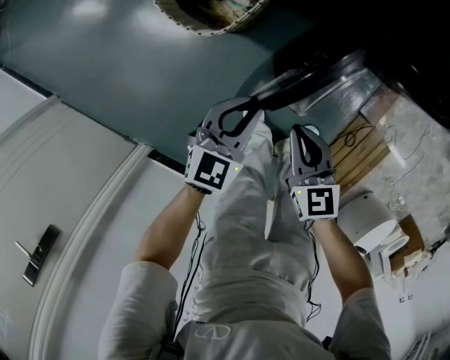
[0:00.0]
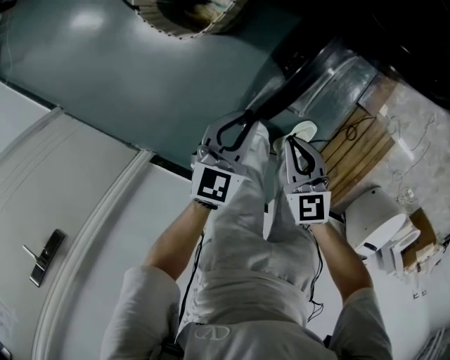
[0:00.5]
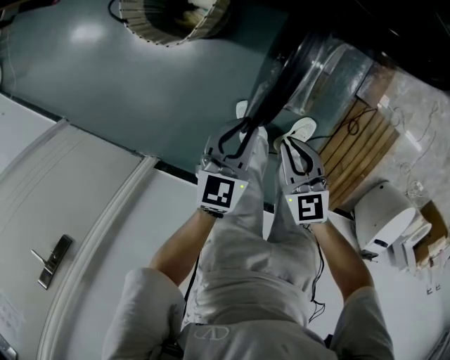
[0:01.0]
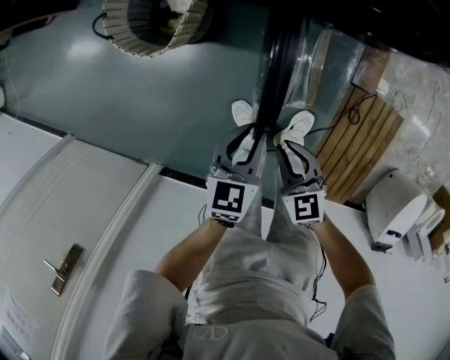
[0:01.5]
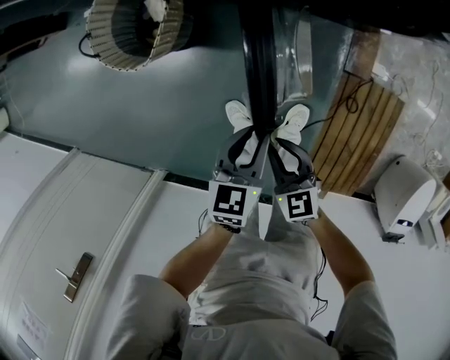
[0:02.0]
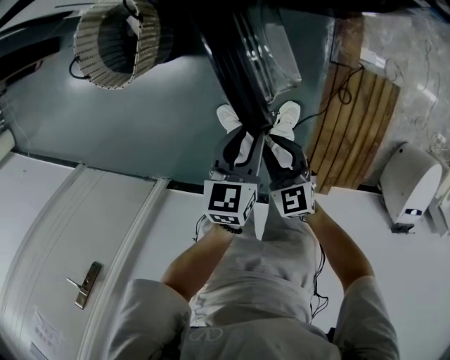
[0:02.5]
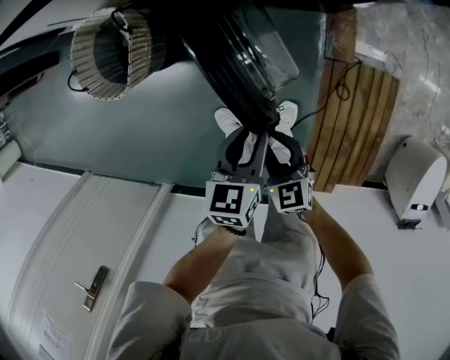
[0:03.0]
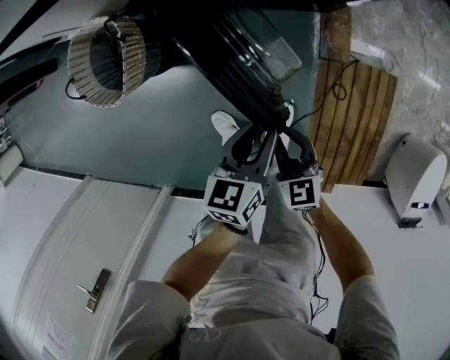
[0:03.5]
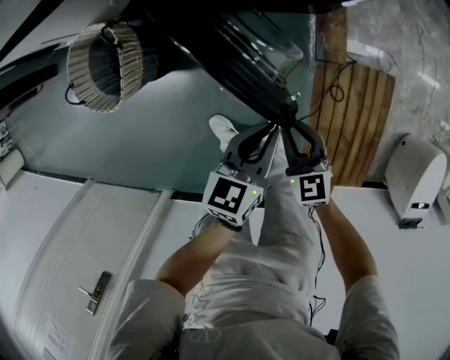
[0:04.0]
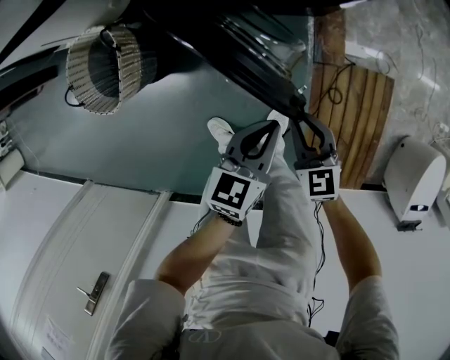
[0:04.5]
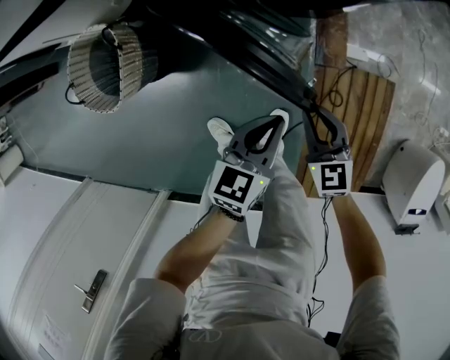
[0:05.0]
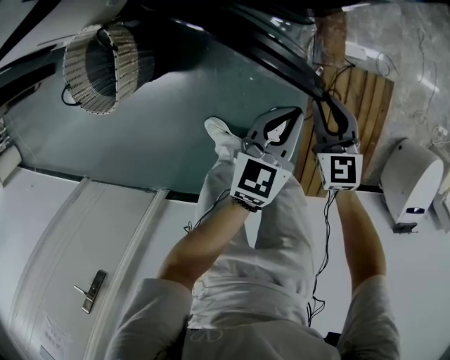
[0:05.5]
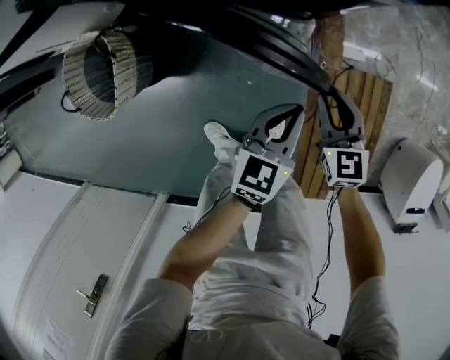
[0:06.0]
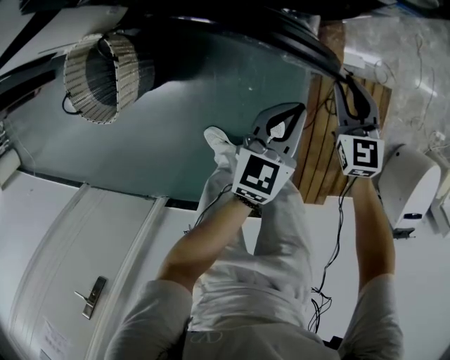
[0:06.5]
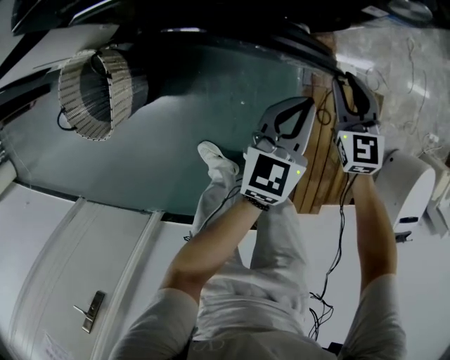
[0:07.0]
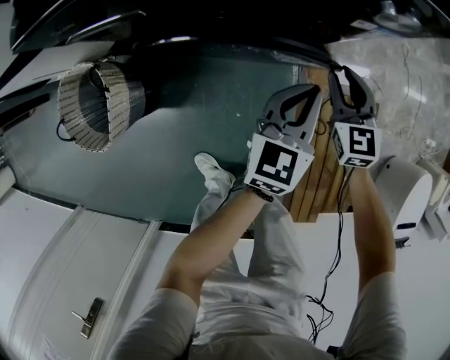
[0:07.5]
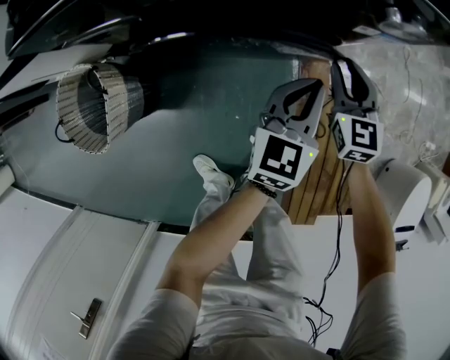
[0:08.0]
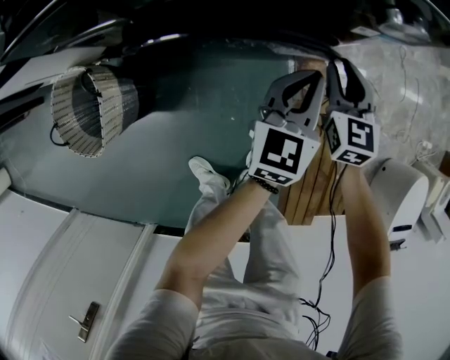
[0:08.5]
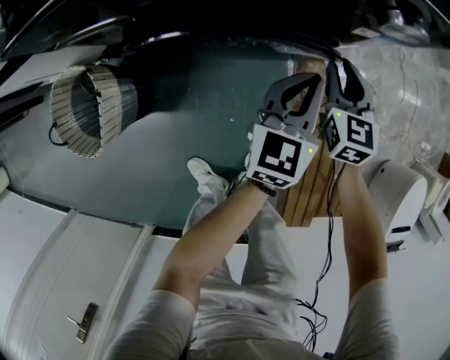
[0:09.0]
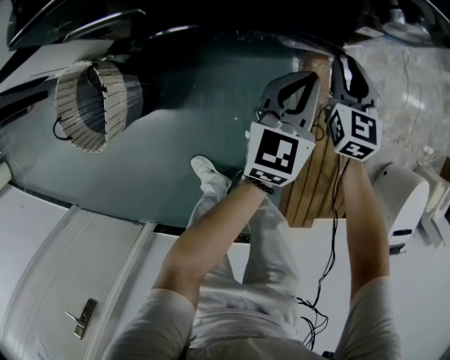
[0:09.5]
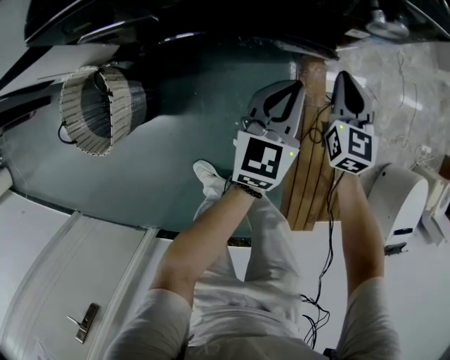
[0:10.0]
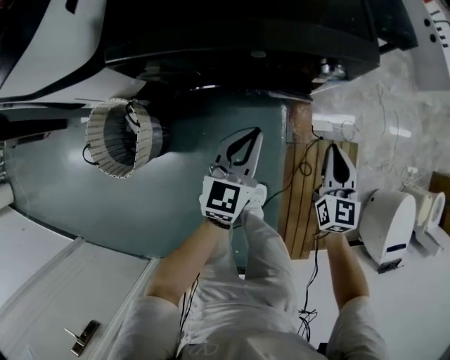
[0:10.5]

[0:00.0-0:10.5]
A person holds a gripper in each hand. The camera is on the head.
0:00.0 to 0:02.0: Both grippers move to the right and backward, roughly 20 cm. The left gripper changes its angle by some 20 degrees.
0:02.0 to 0:04.0: The two grippers go roughly 20 cm to the right.
0:04.0 to 0:06.5: The left gripper heads forward and to the right, covering approximately 10 cm. Meanwhile the right gripper travels forward and to the right by approximately 20 cm.
0:06.5 to 0:08.5: The grippers both shift forward by about 15 cm.
0:08.5 to 0:10.5: The right gripper travels upward and backward by approximately 20 cm, and closes up; the left gripper travels upward, to the left and backward by roughly 20 cm.

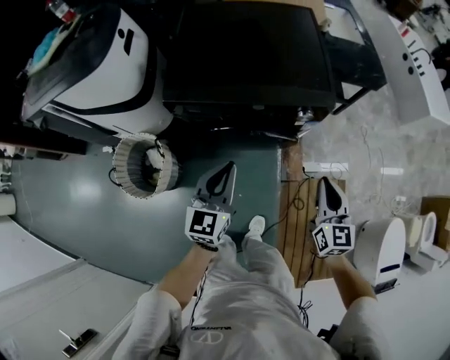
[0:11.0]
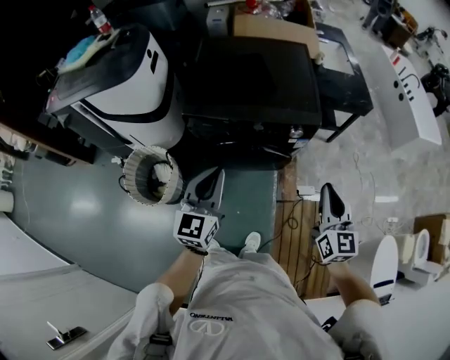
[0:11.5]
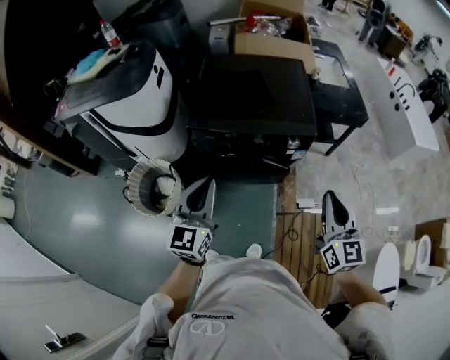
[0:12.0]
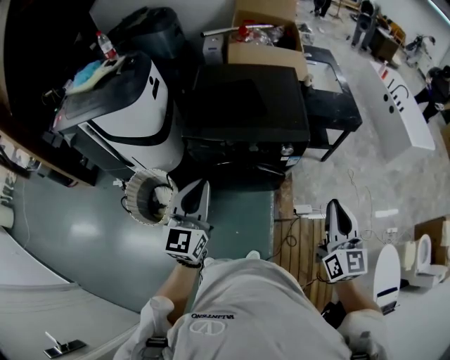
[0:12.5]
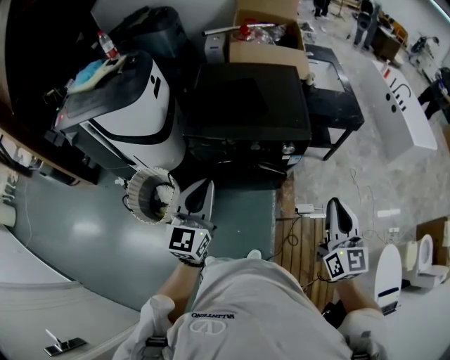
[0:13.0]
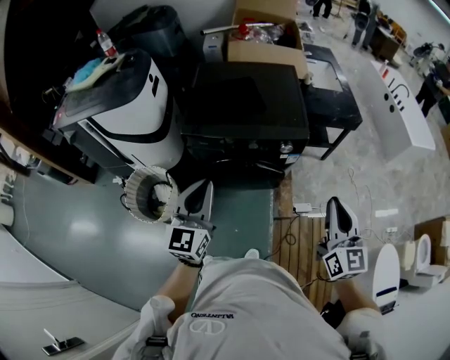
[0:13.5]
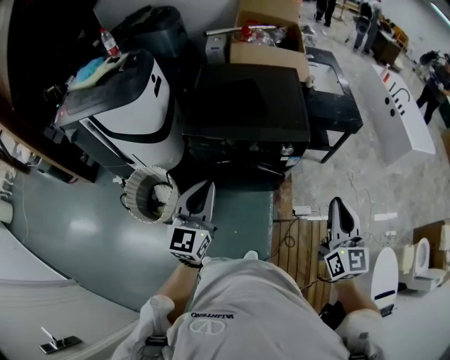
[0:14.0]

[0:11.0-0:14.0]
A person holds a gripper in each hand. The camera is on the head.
0:11.0 to 0:12.5: The grippers both shift upward and backward by roughly 20 cm.
0:12.5 to 0:14.0: The grippers move only a little.

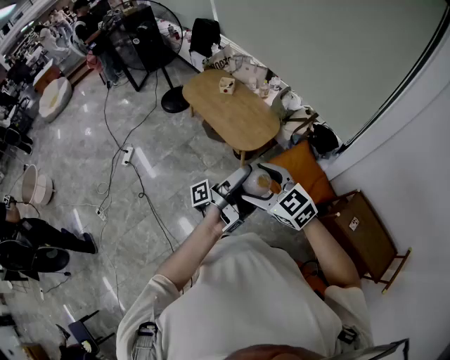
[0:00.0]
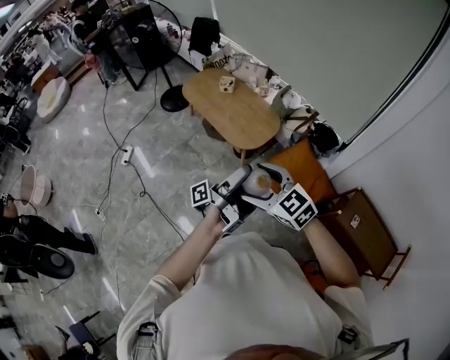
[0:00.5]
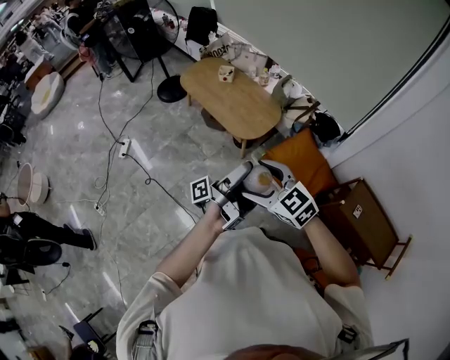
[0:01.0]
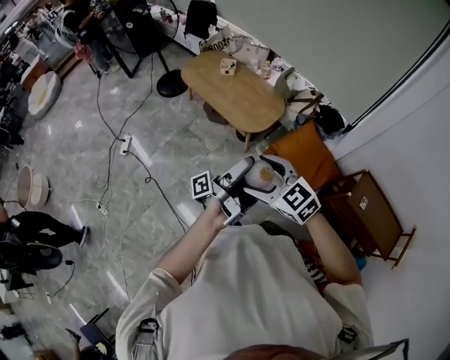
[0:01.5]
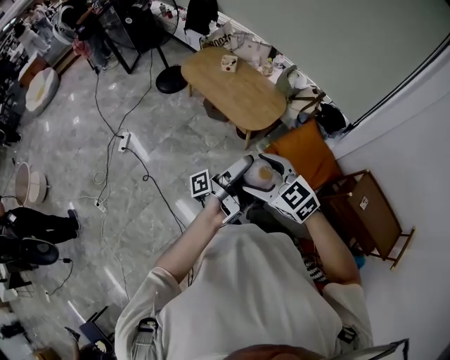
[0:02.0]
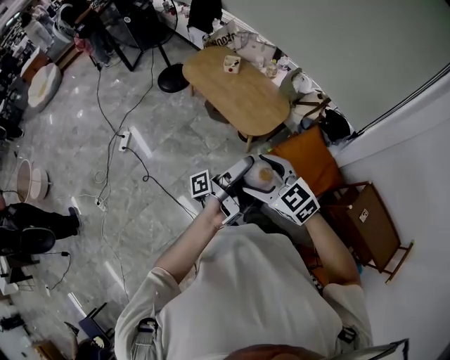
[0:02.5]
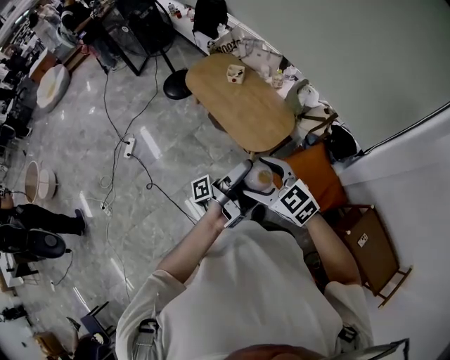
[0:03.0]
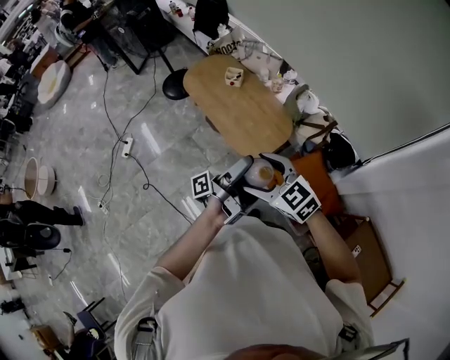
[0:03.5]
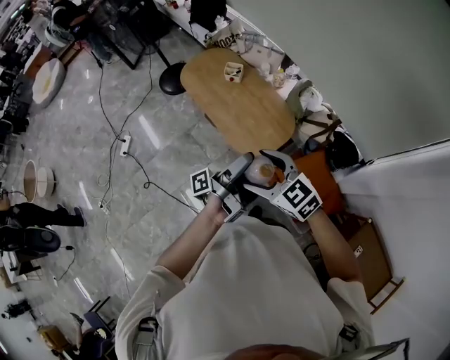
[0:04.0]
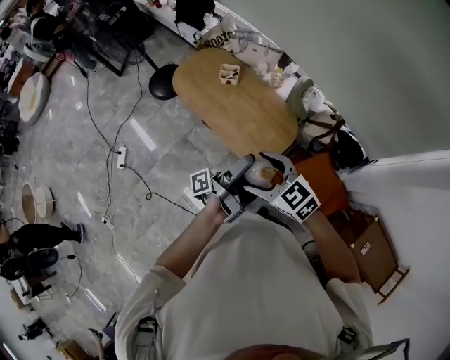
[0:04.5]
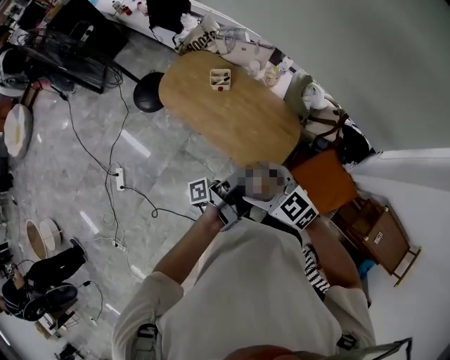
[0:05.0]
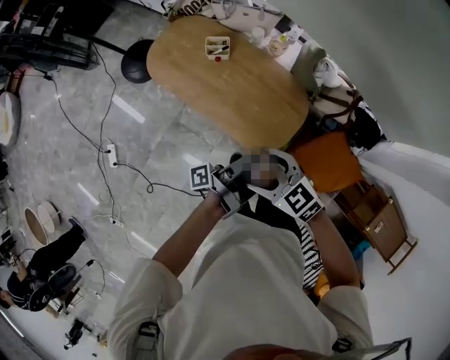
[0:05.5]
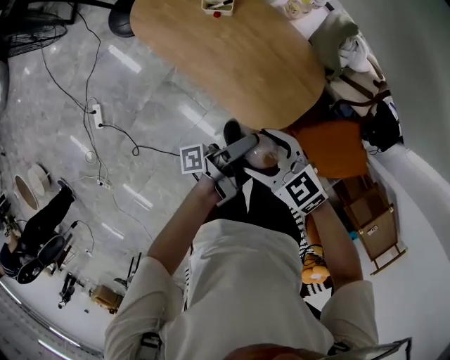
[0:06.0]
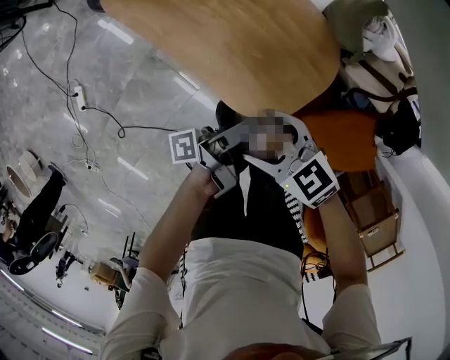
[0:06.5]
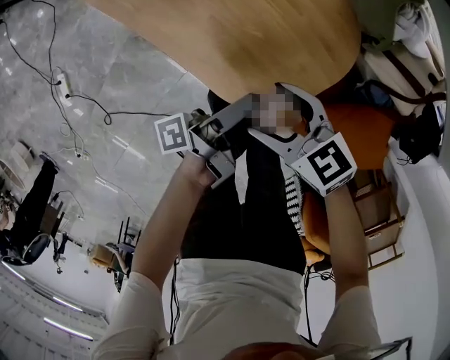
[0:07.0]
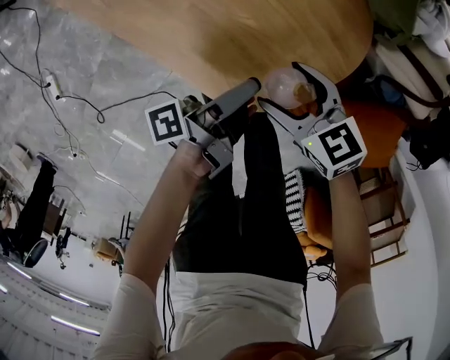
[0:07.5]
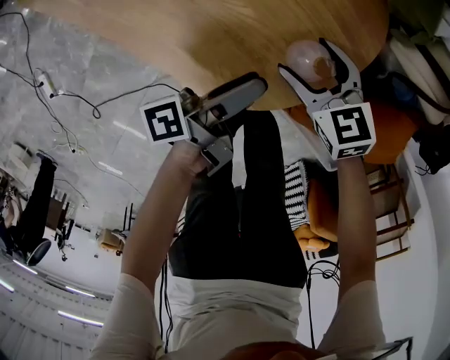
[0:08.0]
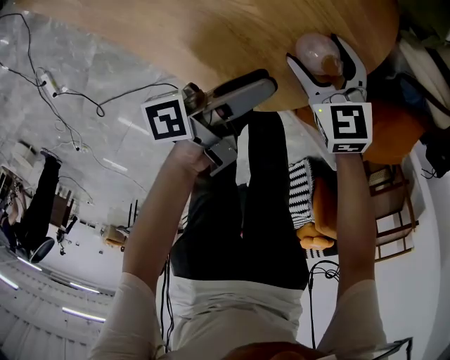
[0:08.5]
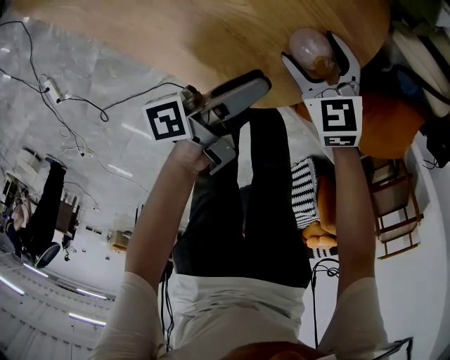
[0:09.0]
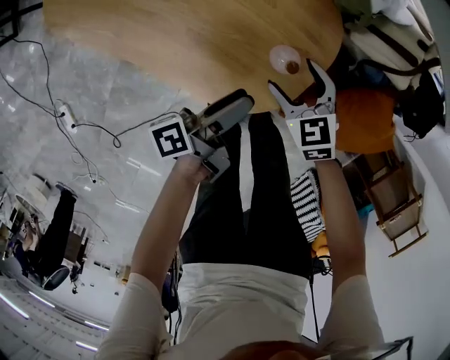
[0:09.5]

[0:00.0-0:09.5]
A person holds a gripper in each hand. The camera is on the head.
0:00.0 to 0:02.0: The right gripper ends up about 10 cm from where it was.
0:02.0 to 0:04.0: The right gripper changes place by approximately 35 cm.
0:04.0 to 0:05.5: The right gripper moves some 30 cm, and changes its angle by some 20 degrees.
0:05.5 to 0:07.5: The right gripper heads downward, covering some 50 cm.
0:07.5 to 0:09.5: The right gripper reaches approximately 10 cm downward, then returns, and rotates about 30 degrees.

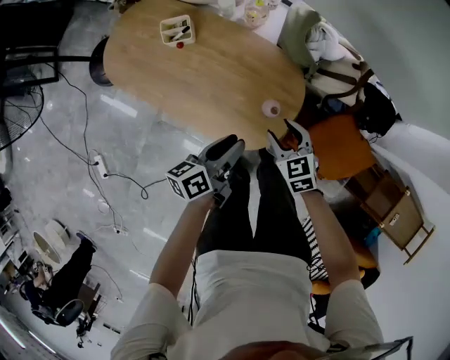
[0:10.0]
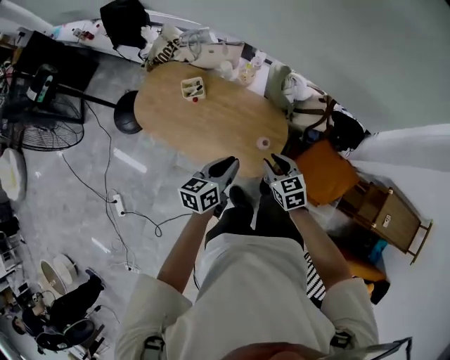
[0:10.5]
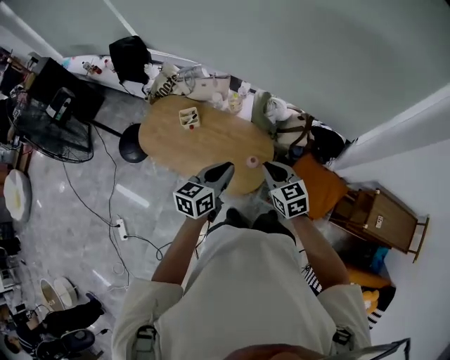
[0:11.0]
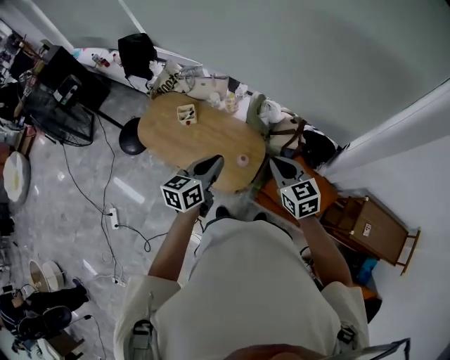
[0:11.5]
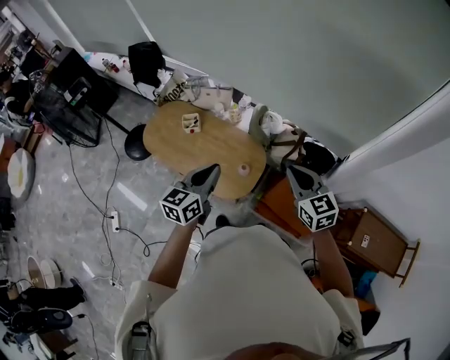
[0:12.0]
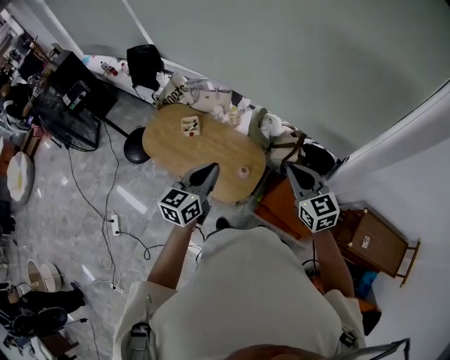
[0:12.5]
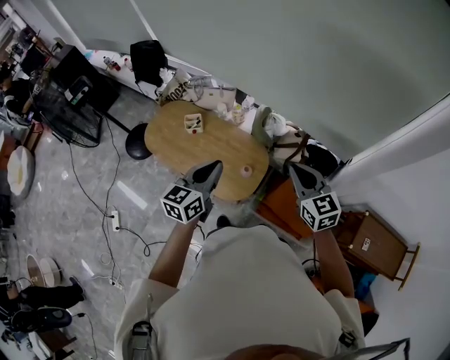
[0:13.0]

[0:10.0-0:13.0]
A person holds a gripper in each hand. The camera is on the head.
0:10.0 to 0:11.5: The right gripper moves upward, some 40 cm, turns by some 20 degrees, and closes.
0:11.5 to 0:13.0: The right gripper travels upward by roughly 5 cm.
